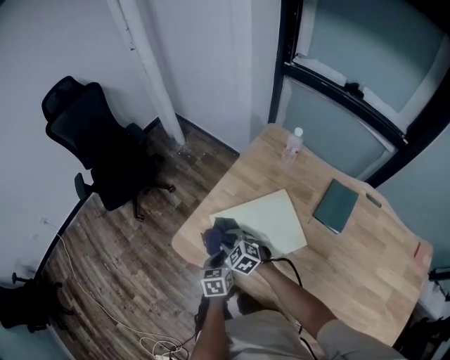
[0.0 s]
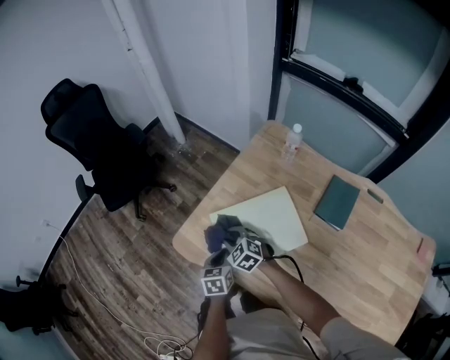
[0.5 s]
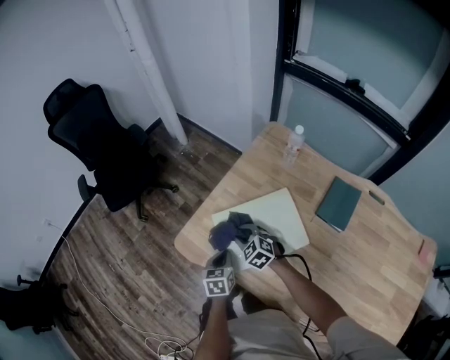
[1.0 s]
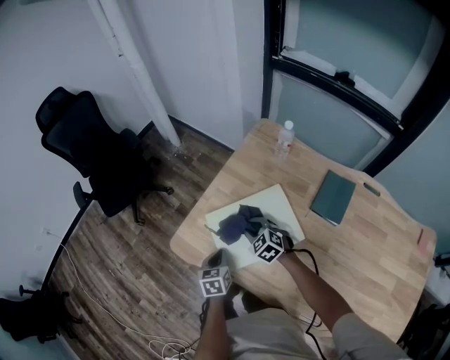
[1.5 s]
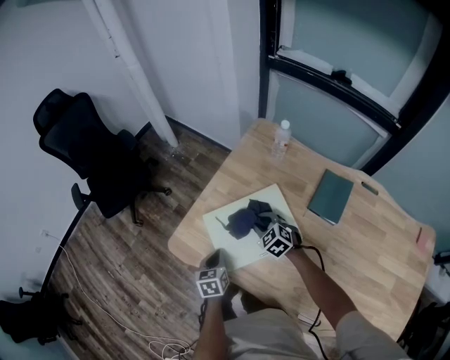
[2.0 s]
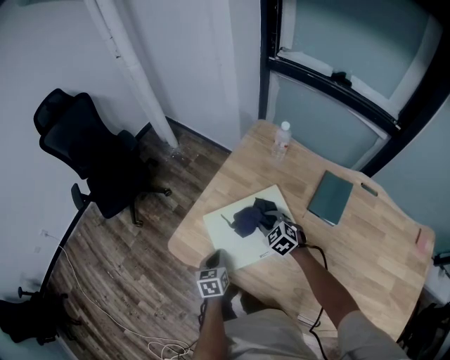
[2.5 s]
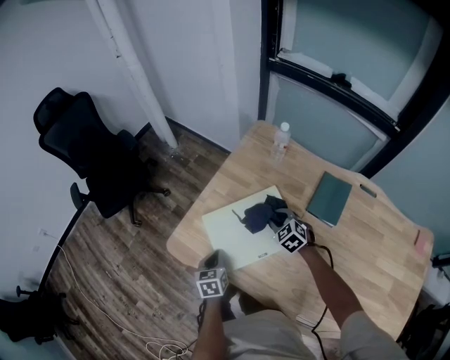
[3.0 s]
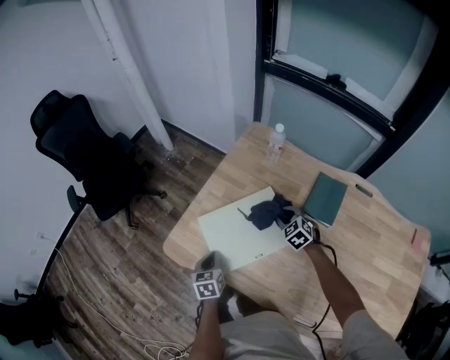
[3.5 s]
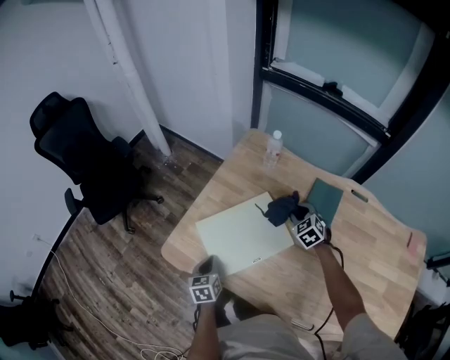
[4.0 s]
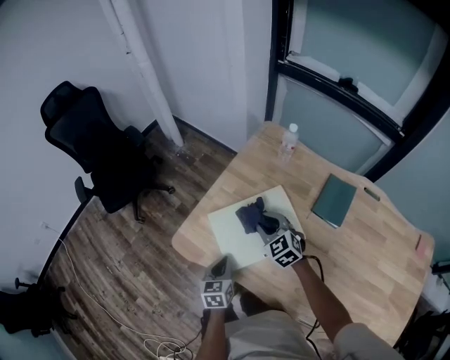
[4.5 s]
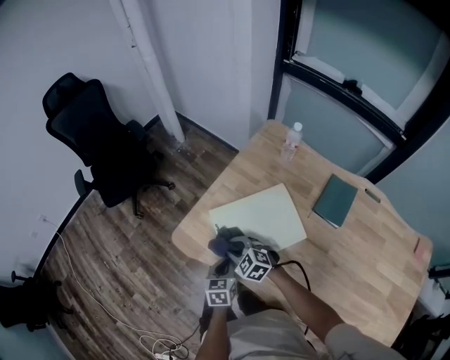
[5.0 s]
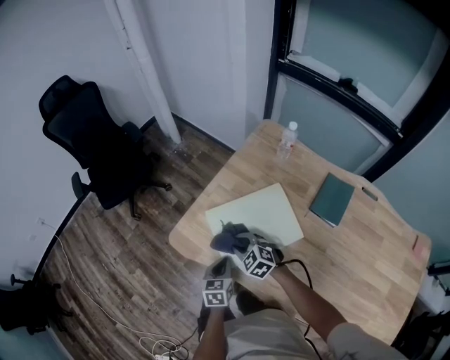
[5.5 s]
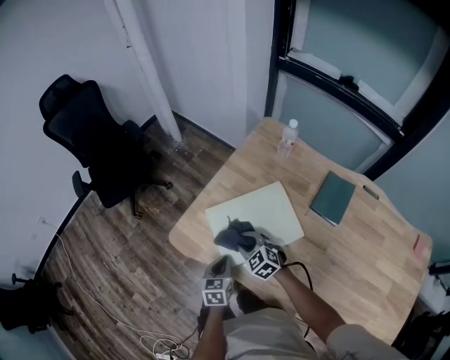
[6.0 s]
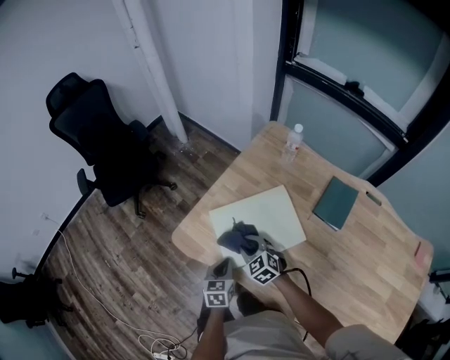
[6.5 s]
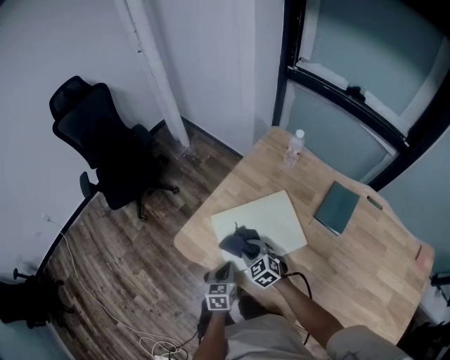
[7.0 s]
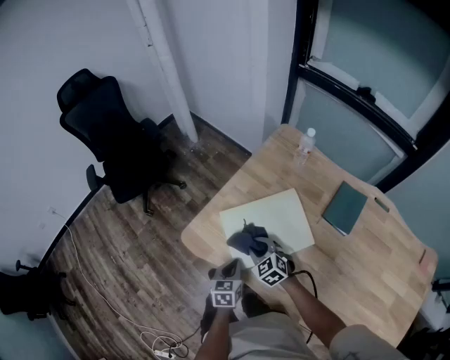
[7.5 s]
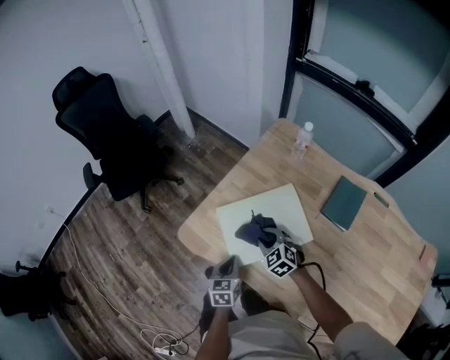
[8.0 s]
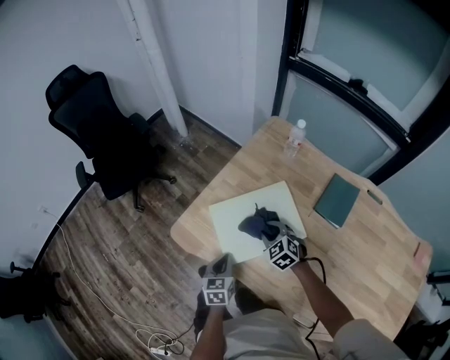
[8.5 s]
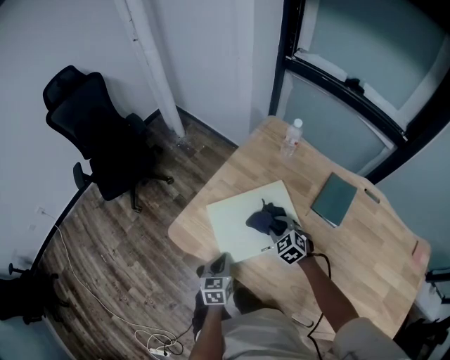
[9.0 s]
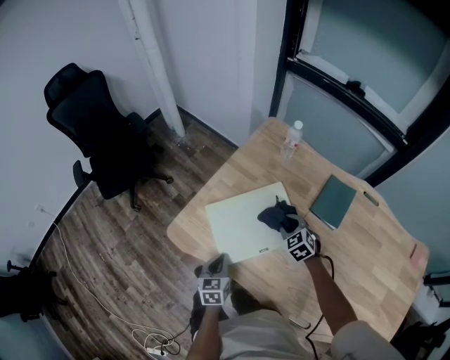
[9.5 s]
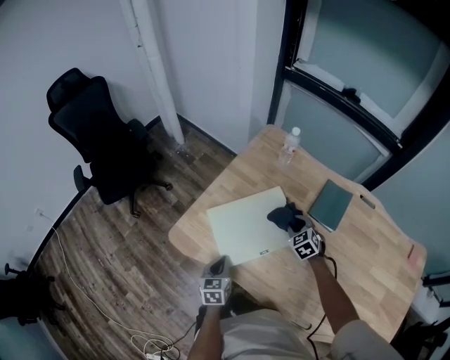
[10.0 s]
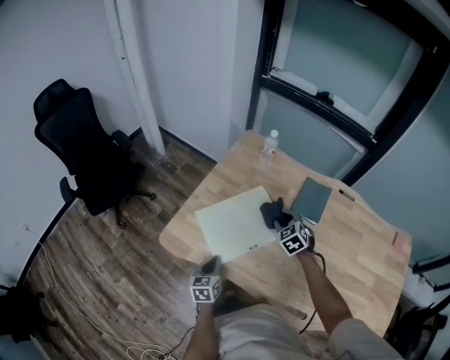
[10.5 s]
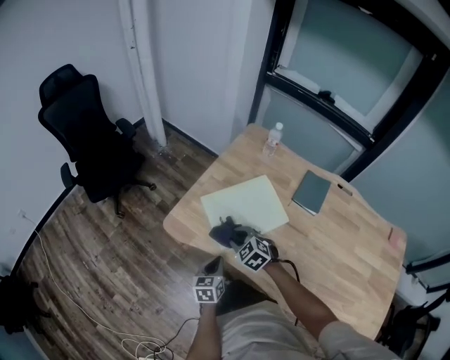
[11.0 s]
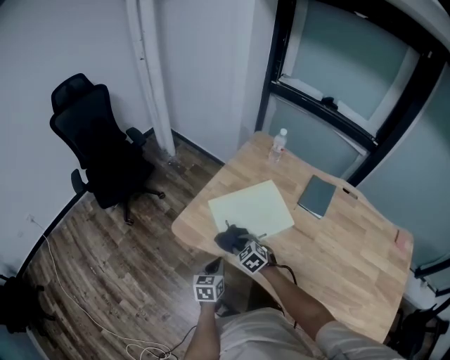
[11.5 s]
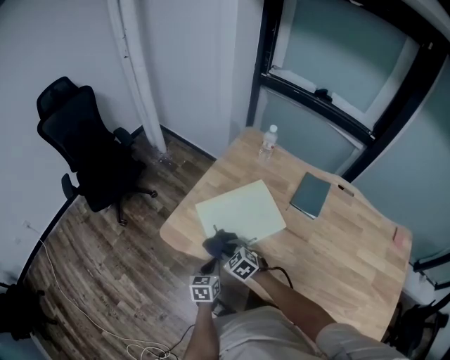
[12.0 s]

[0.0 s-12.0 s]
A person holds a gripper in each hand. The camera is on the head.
0.0 to 2.0 s: The right gripper shifts approximately 15 cm to the right.
2.0 to 4.0 s: The right gripper heads to the right, covering about 20 cm.
4.0 to 6.0 s: The right gripper travels to the left by roughly 30 cm, and changes its angle by roughly 30 degrees; the left gripper changes place by approximately 5 cm.
6.0 to 8.0 s: The grippers stay close to where they were, moving slightly.
8.0 to 10.0 s: The right gripper goes some 15 cm to the right.
10.0 to 12.0 s: The right gripper moves to the left and backward, some 30 cm, and turns by about 20 degrees. The left gripper shifts about 5 cm backward.

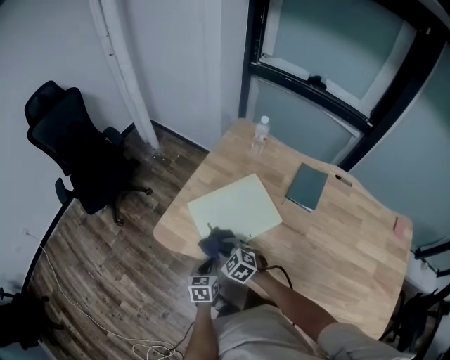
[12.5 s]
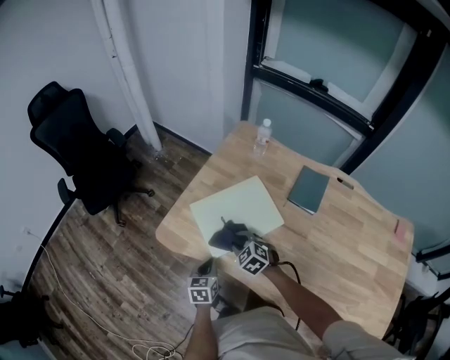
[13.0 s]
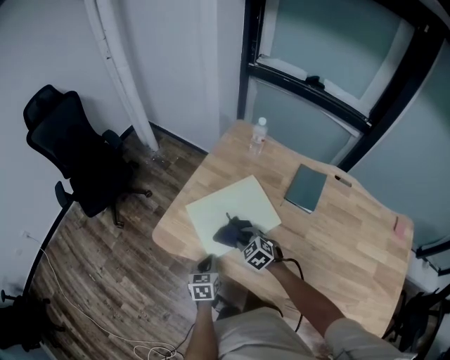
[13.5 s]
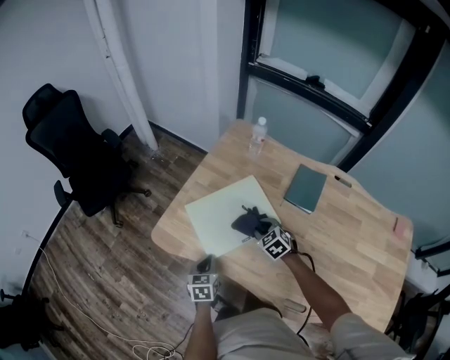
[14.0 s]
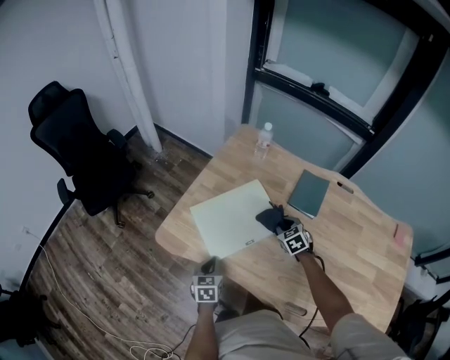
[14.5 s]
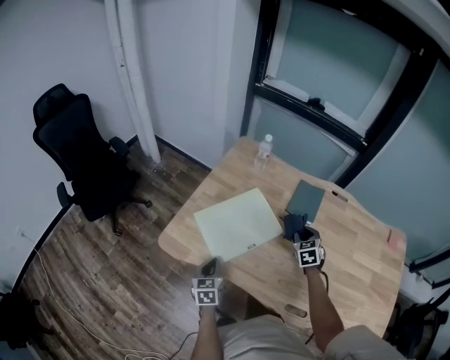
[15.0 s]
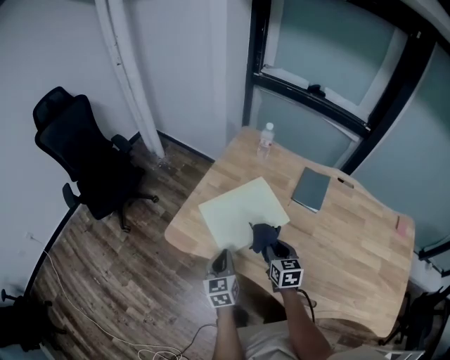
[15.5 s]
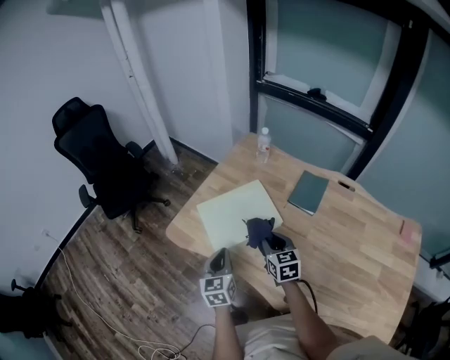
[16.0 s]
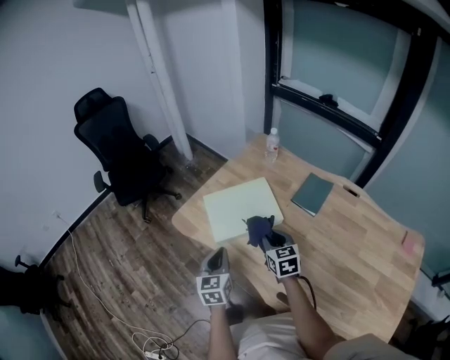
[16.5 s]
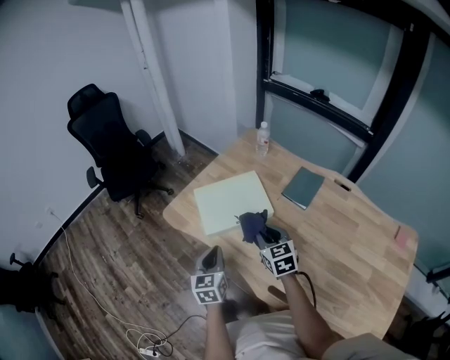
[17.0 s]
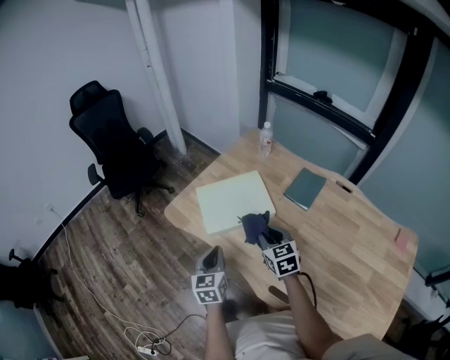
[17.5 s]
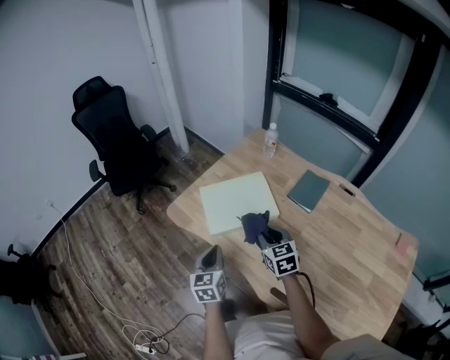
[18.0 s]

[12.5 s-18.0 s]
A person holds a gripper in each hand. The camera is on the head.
12.5 to 14.5 s: The right gripper moves to the right, roughly 25 cm, and rotates approximately 30 degrees.
14.5 to 16.0 s: The right gripper heads upward, backward and to the left, covering approximately 20 cm, and rotates approximately 30 degrees. The left gripper travels upward by about 15 cm, and turns by some 20 degrees.
16.0 to 18.0 s: The left gripper moves backward, approximately 5 cm, while the right gripper shifts by approximately 5 cm.

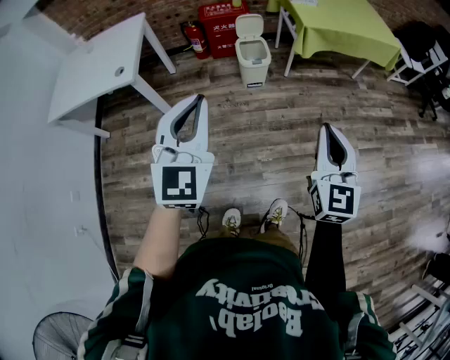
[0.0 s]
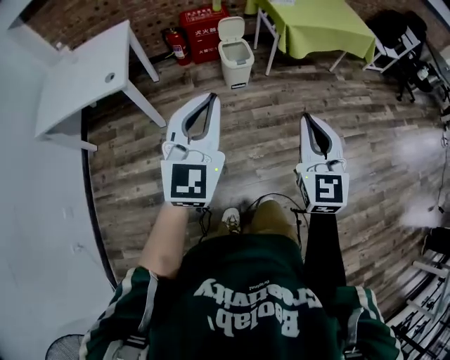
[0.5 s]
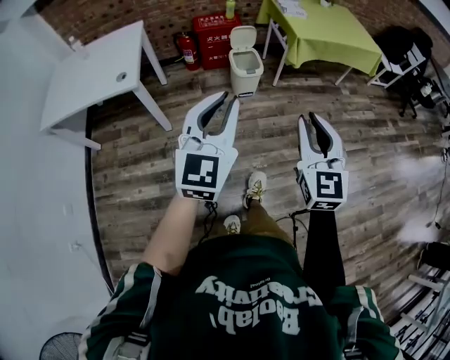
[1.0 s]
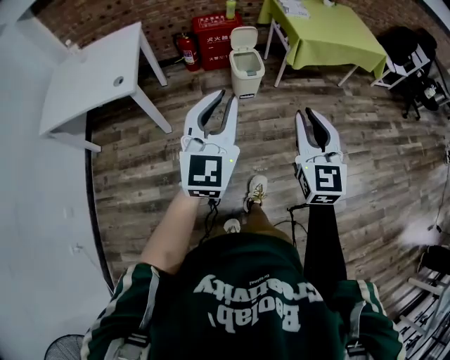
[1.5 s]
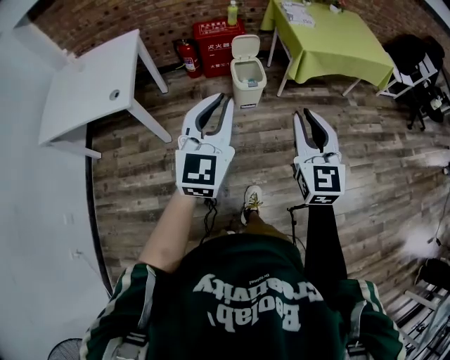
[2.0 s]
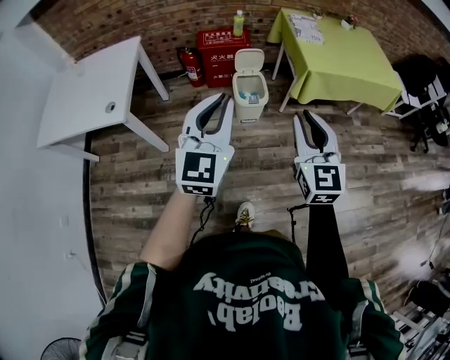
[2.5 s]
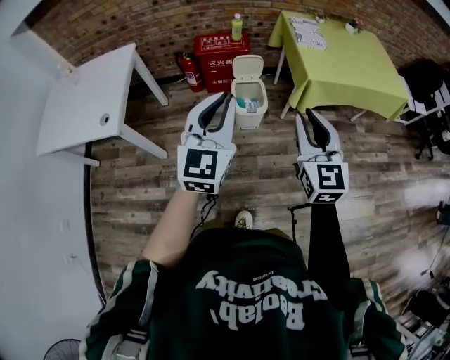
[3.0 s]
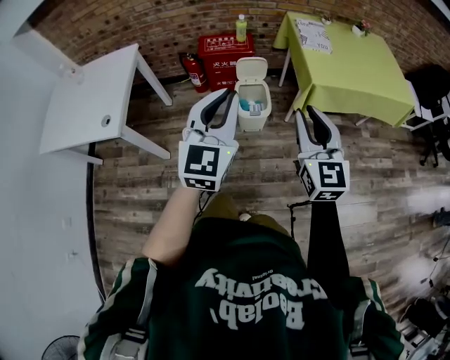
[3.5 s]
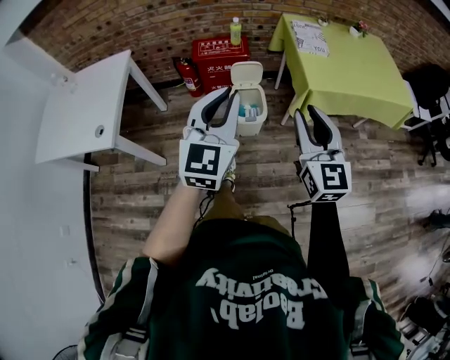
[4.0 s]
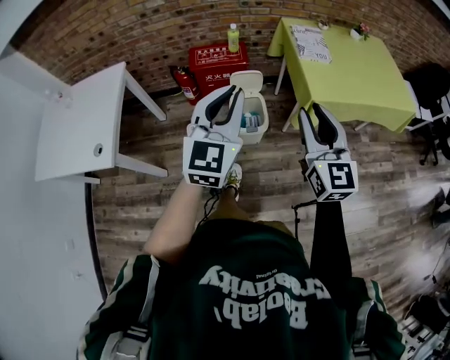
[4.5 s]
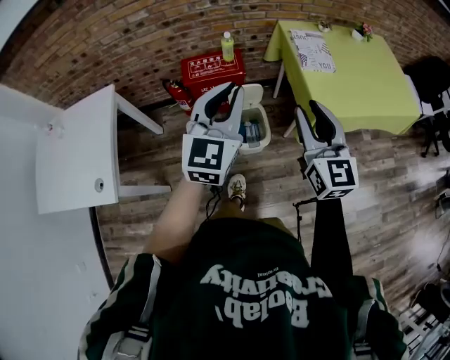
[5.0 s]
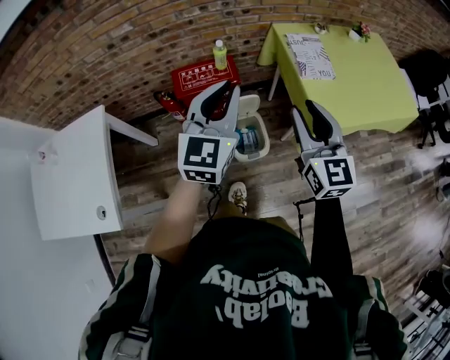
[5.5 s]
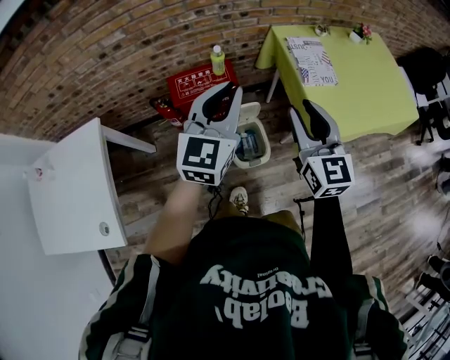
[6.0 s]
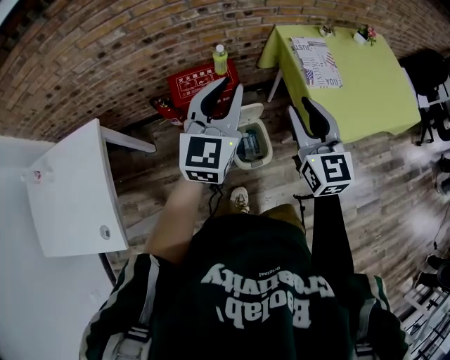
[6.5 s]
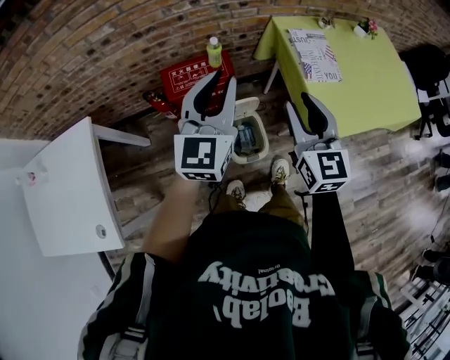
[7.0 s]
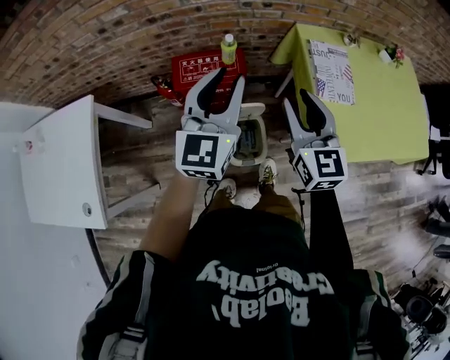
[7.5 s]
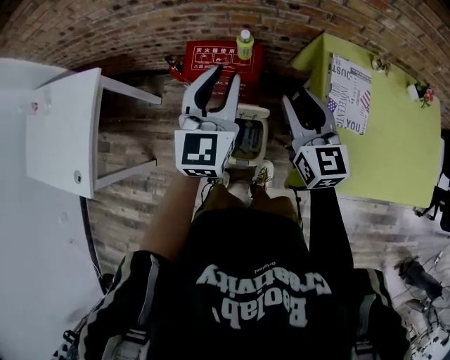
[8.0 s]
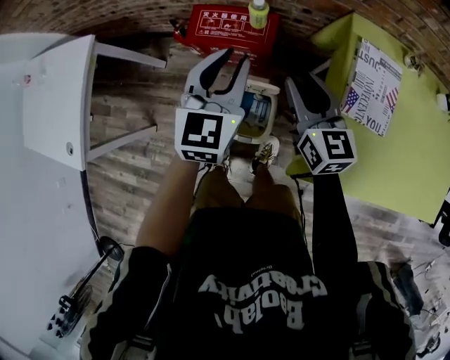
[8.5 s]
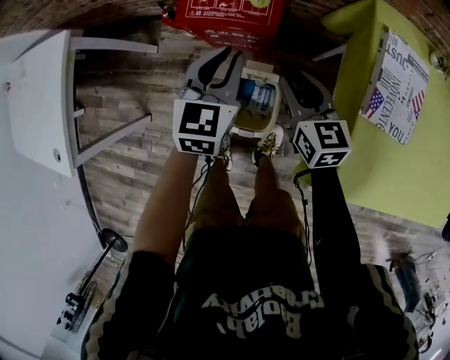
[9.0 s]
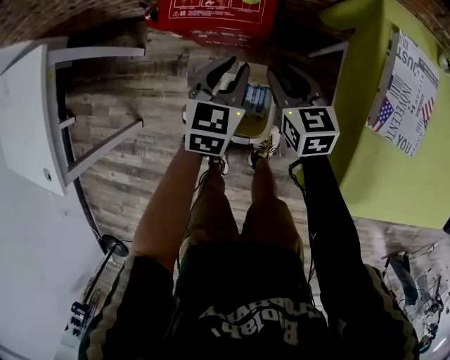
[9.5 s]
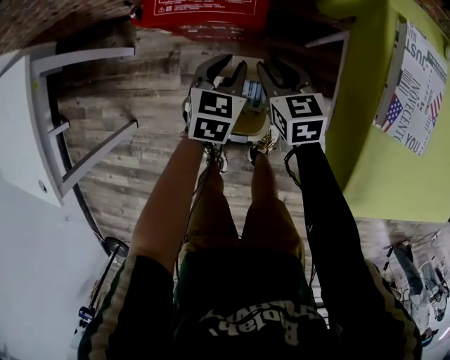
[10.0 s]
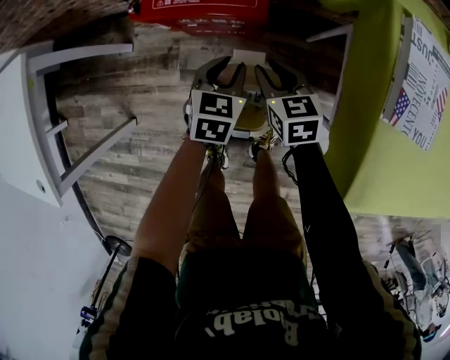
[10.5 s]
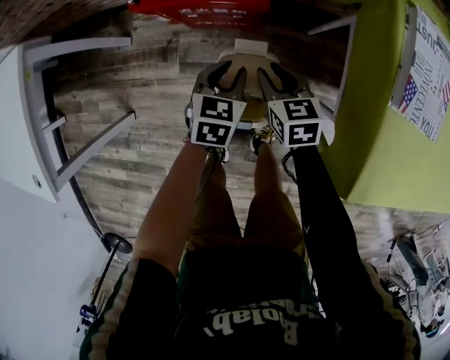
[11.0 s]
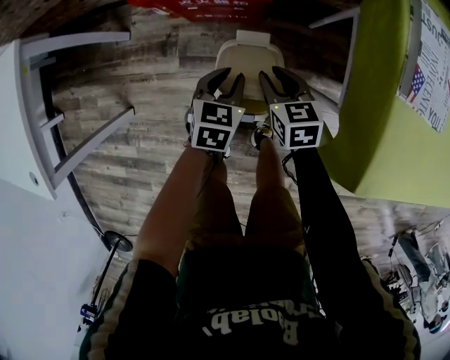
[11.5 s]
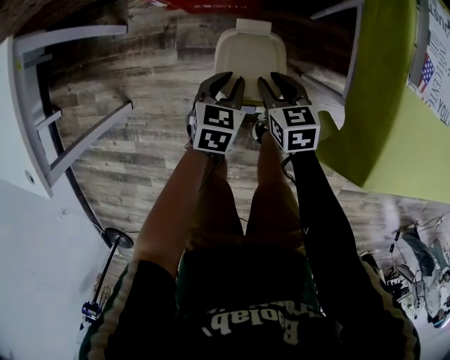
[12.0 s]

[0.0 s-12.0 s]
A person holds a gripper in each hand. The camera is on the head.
0.0 to 2.0 s: The left gripper shifts roughly 10 cm forward. Meanwhile the right gripper goes some 15 cm forward and to the left.
2.0 to 4.0 s: The two grippers go about 25 cm forward.
4.0 to 6.0 s: The two grippers go roughly 35 cm forward.
6.0 to 8.0 s: The left gripper ends up approximately 15 cm from where it was, and turns by roughly 30 degrees. Meanwhile the right gripper shifts by about 20 cm, and swivels about 20 degrees.
8.0 to 10.0 s: The grippers both shift downward by approximately 40 cm. The left gripper points its fingers about 40 degrees further downward. Meanwhile the right gripper turns by about 30 degrees.
10.0 to 12.0 s: The two grippers go about 15 cm backward and downward.
